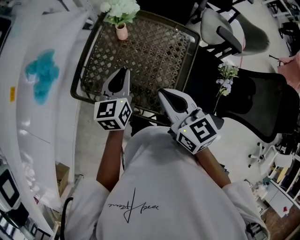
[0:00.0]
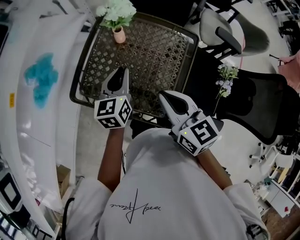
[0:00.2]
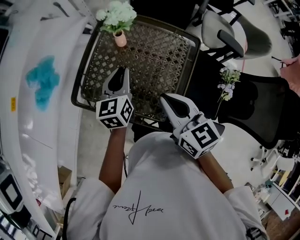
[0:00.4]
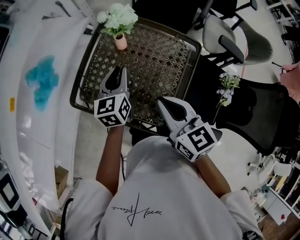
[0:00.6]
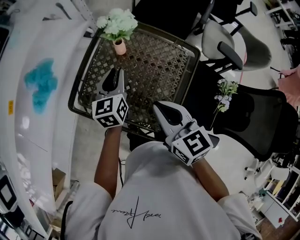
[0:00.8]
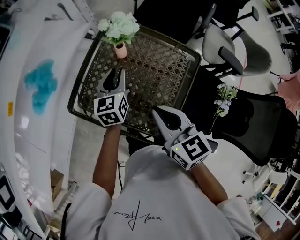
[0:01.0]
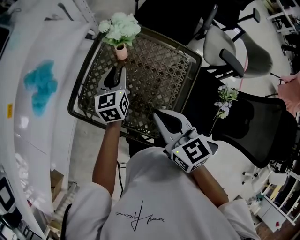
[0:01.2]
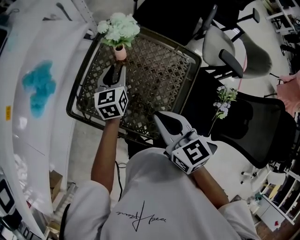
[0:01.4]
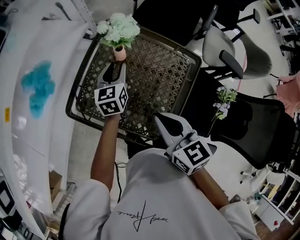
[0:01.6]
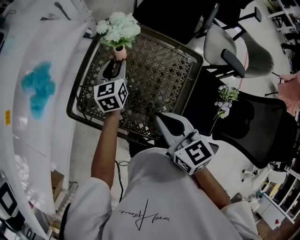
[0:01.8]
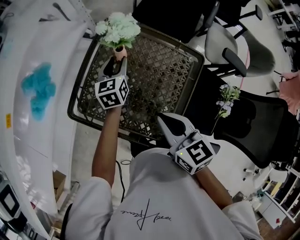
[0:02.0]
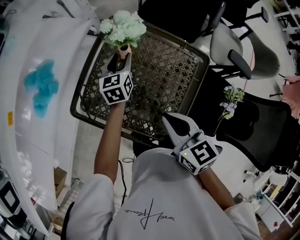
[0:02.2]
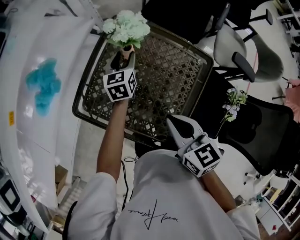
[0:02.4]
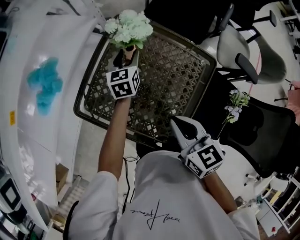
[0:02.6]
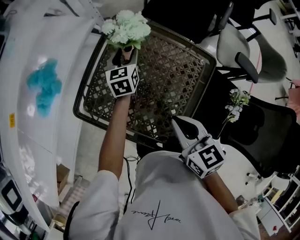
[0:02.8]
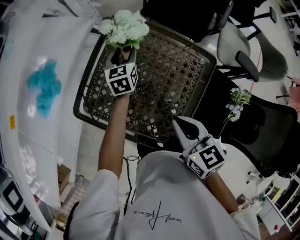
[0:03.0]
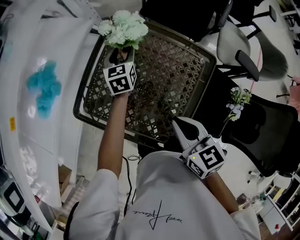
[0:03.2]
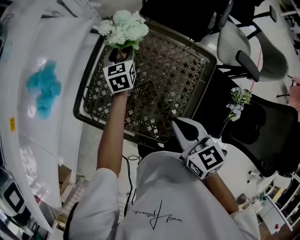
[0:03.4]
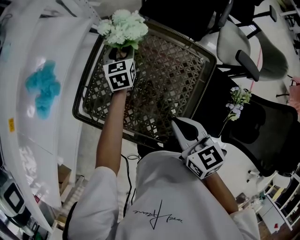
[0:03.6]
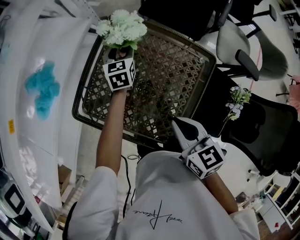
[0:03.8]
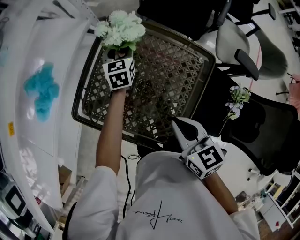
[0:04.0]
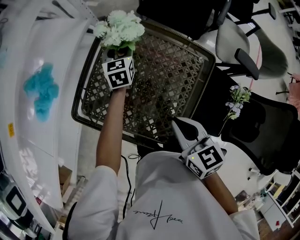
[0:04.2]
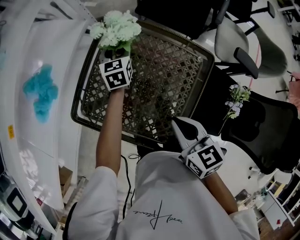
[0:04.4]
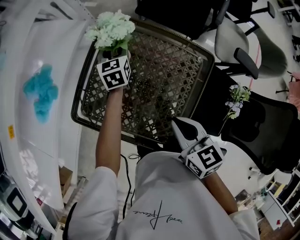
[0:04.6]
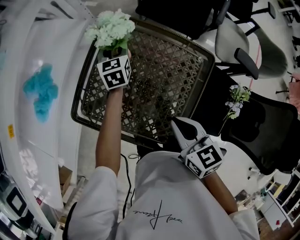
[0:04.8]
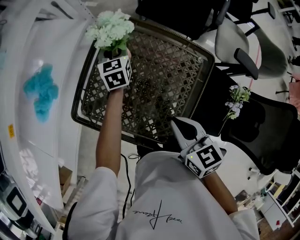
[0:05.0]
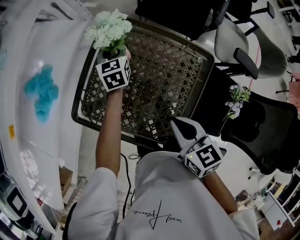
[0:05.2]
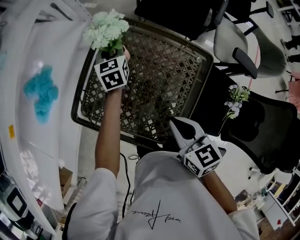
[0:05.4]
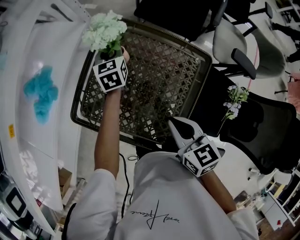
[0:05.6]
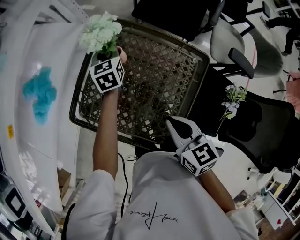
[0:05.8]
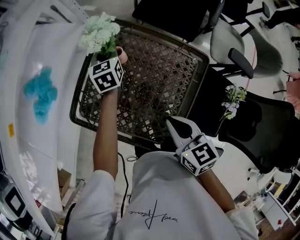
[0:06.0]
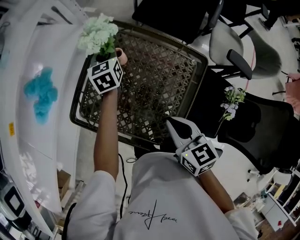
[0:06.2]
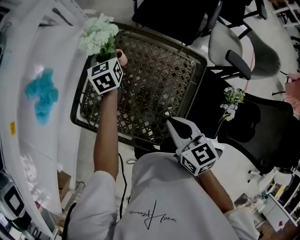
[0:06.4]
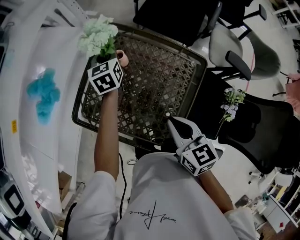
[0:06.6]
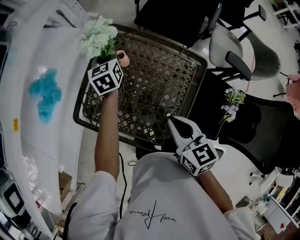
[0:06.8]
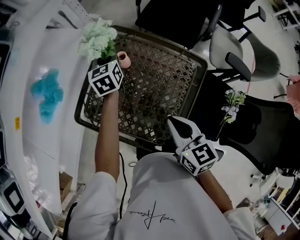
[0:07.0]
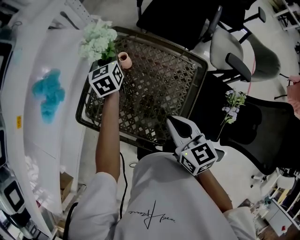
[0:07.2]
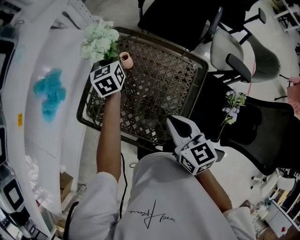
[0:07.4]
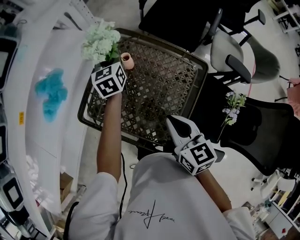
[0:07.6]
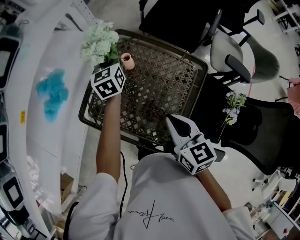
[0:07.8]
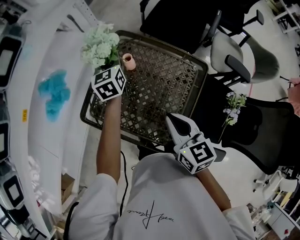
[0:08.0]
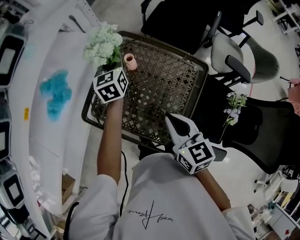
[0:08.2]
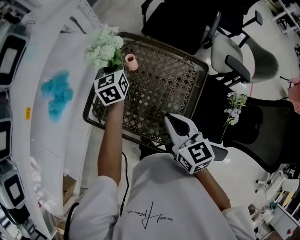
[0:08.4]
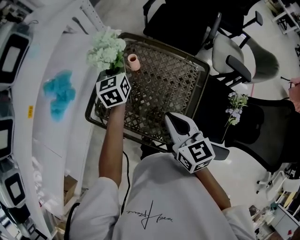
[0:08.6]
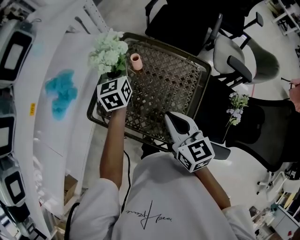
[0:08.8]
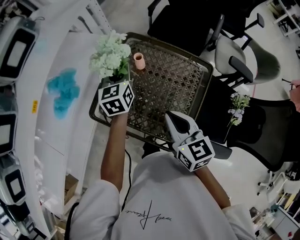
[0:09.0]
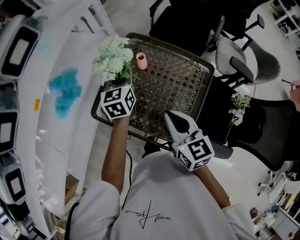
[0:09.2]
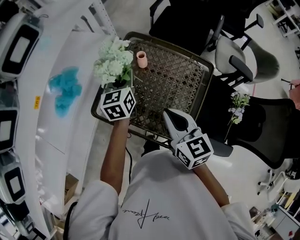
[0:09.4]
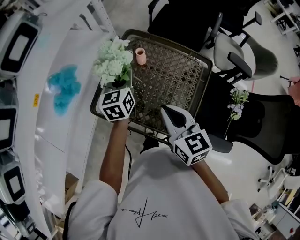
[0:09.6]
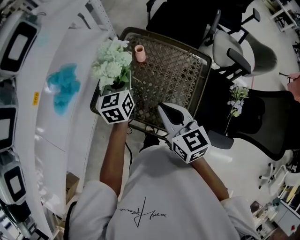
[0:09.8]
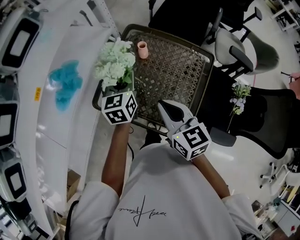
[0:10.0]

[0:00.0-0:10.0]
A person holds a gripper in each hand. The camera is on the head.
0:00.0 to 0:01.4: The right gripper ends up some 5 cm from where it was. Meanwhile the left gripper heads forward and downward, covering about 15 cm, and opens.
0:01.4 to 0:02.8: The left gripper is displaced forward by about 10 cm, while the right gripper moves about 5 cm.
0:02.8 to 0:04.2: The grippers move only a little.
0:04.2 to 0:05.8: The left gripper closes its fingers.
0:05.8 to 0:07.2: The left gripper heads upward, covering approximately 5 cm.
0:07.2 to 0:08.6: The left gripper shifts roughly 10 cm backward and upward; the right gripper ends up approximately 5 cm from where it was.
0:08.6 to 0:10.0: The right gripper heads to the left, covering approximately 10 cm. Meanwhile the left gripper shifts some 10 cm backward.

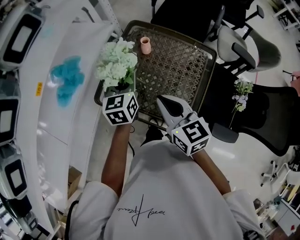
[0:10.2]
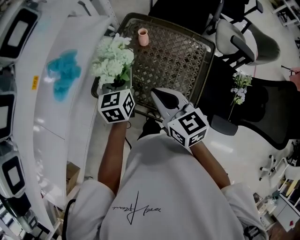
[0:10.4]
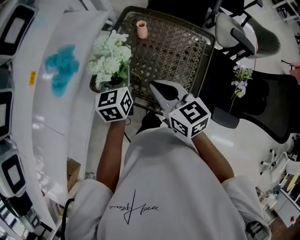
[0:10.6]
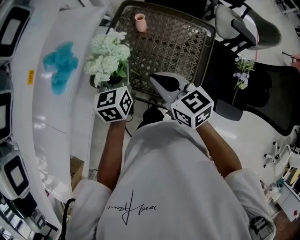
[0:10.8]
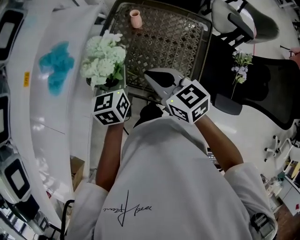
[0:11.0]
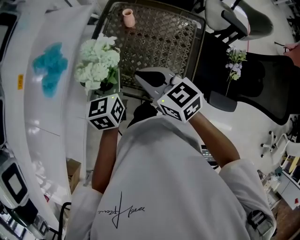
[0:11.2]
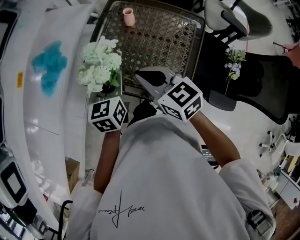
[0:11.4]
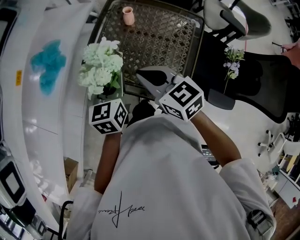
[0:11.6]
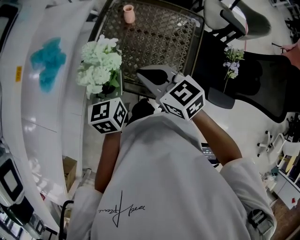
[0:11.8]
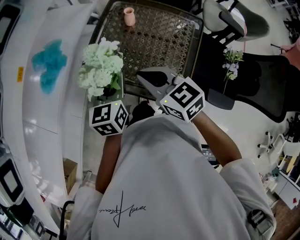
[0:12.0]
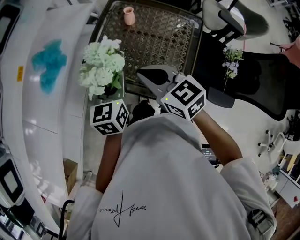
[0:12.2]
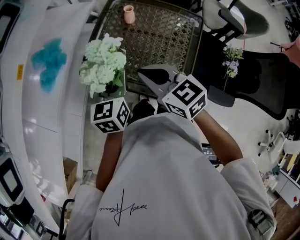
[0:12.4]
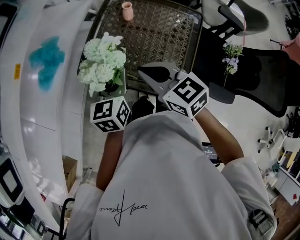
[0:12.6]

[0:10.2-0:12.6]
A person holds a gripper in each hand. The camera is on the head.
0:10.2 to 0:11.4: The right gripper shifts by about 5 cm. Meanwhile the left gripper travels backward by about 10 cm.
0:11.4 to 0:12.6: The grippers make only small movements.

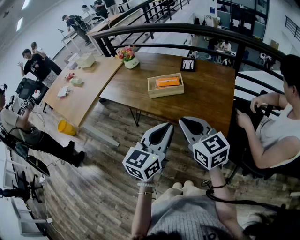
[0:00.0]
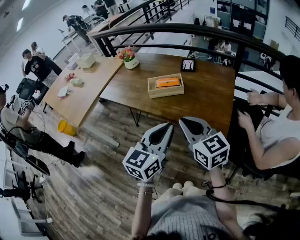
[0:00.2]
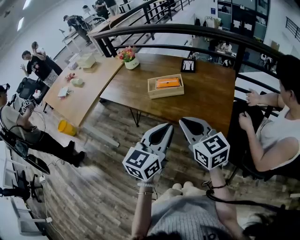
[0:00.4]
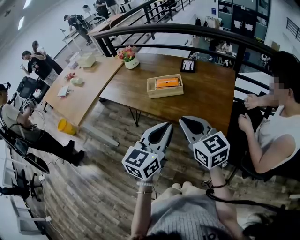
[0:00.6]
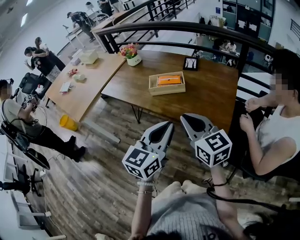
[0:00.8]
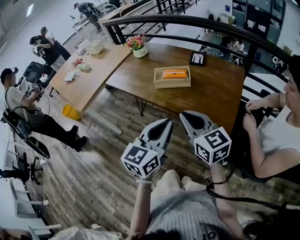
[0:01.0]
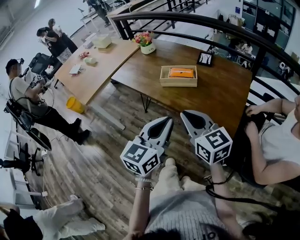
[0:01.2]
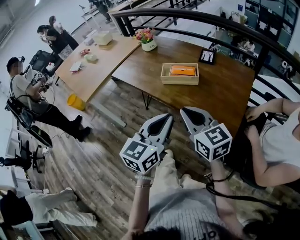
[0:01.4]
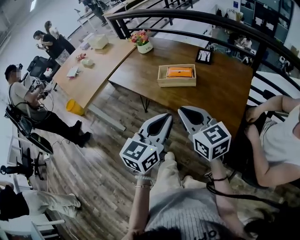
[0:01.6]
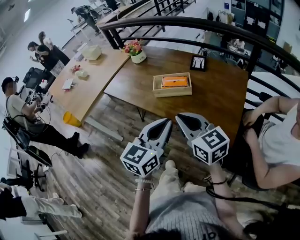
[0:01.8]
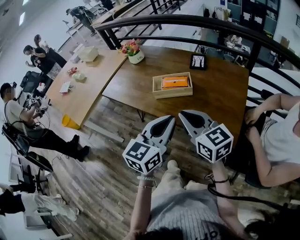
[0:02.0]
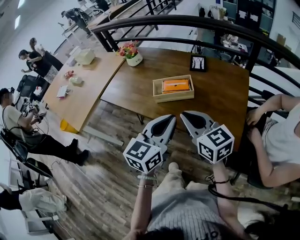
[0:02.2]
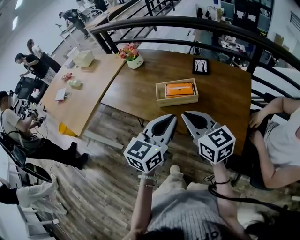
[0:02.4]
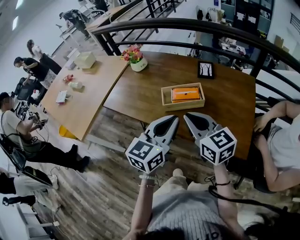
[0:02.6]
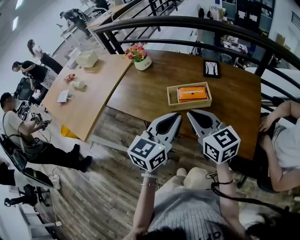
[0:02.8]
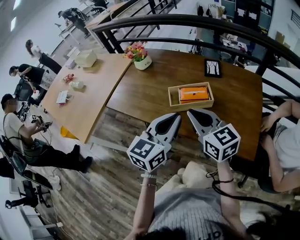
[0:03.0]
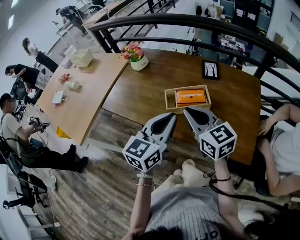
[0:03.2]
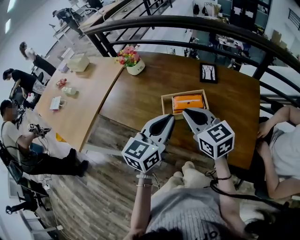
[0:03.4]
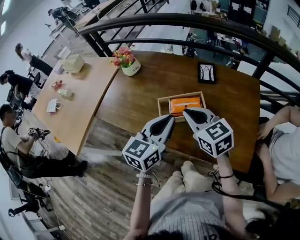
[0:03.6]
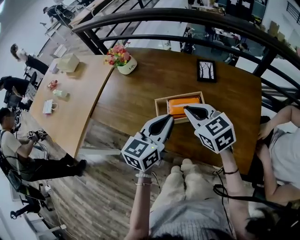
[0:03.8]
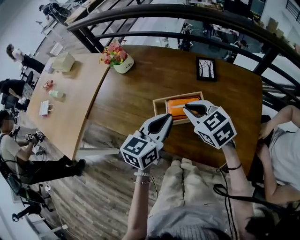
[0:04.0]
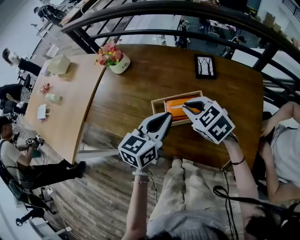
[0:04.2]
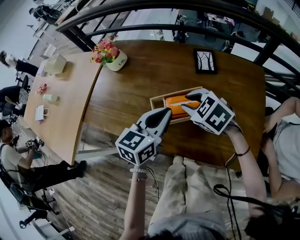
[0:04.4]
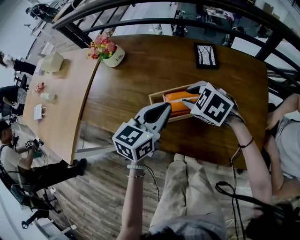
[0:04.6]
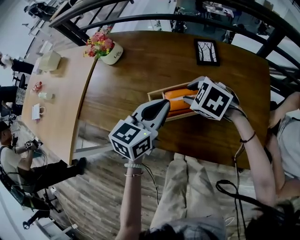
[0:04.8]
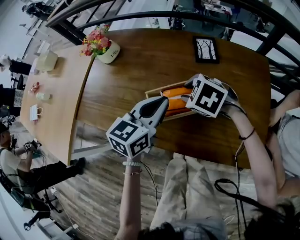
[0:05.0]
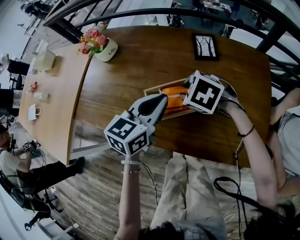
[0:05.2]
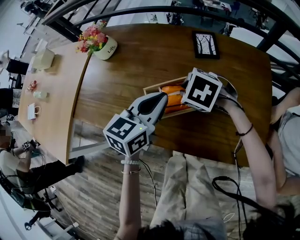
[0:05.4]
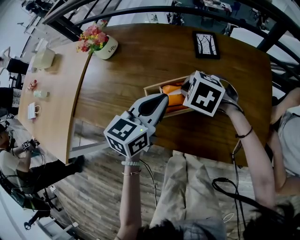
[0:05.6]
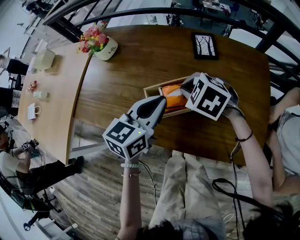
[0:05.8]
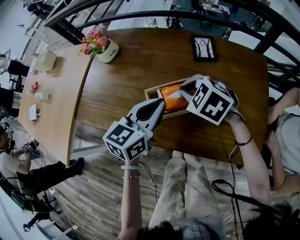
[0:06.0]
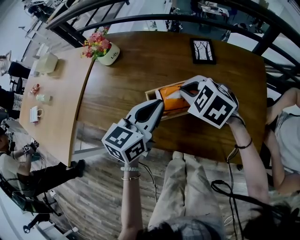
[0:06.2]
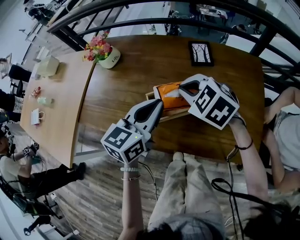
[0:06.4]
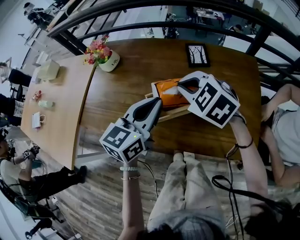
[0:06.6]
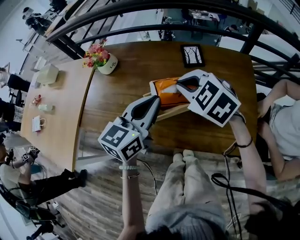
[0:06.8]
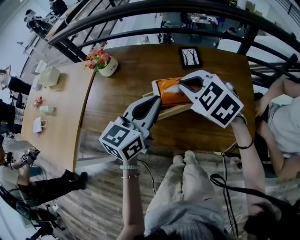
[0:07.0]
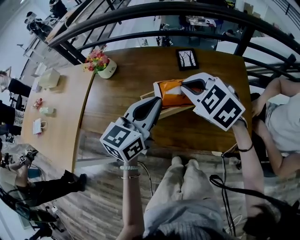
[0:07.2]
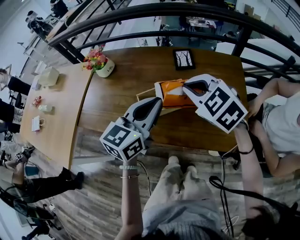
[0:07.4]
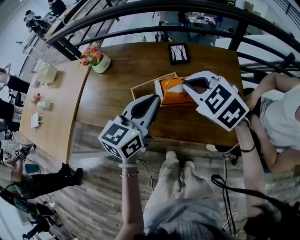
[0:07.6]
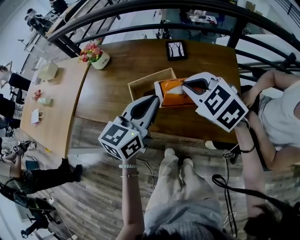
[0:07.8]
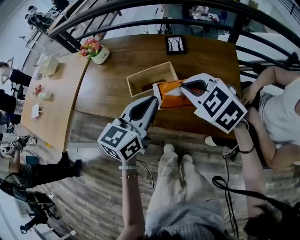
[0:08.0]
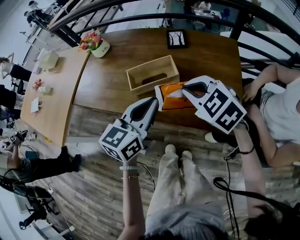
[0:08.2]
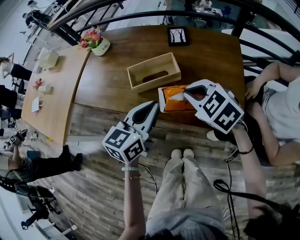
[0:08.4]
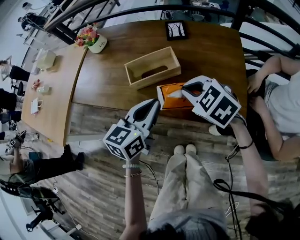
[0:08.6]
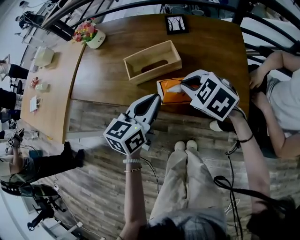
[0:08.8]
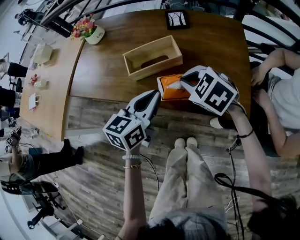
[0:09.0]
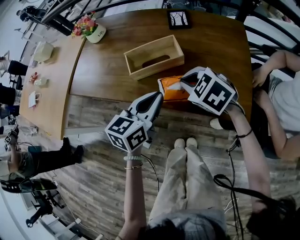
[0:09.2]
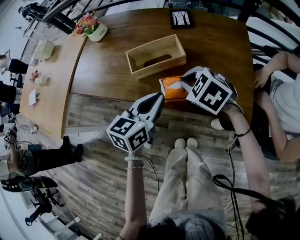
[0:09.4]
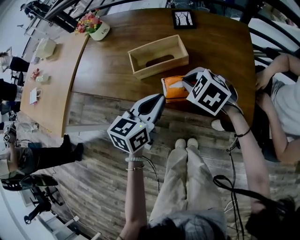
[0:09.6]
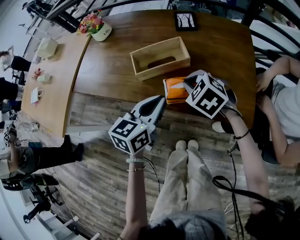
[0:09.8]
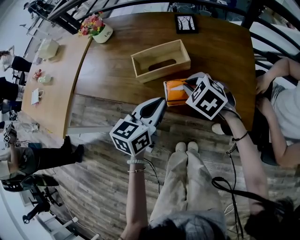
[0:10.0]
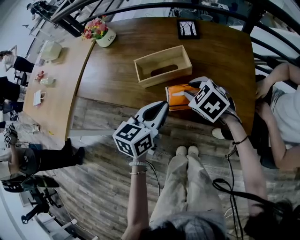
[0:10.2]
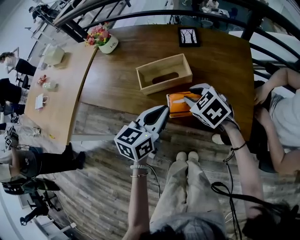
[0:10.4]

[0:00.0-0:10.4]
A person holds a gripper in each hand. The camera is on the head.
0:00.0 to 0:01.4: The grippers move only a little.
0:01.4 to 0:03.0: The grippers both shift forward by approximately 15 cm.
0:03.0 to 0:04.4: Both grippers travel together forward and downward, about 15 cm. The right gripper angles its fingers downward, by about 40 degrees, and opens up.
0:04.4 to 0:06.0: The right gripper closes.
0:06.0 to 0:07.4: The left gripper goes some 10 cm upward; the right gripper is displaced upward, to the right and backward by some 15 cm.
0:07.4 to 0:09.0: Both grippers move downward and backward, roughly 15 cm.
0:09.0 to 0:10.4: The right gripper opens its fingers.

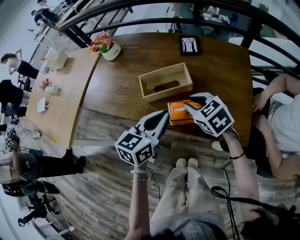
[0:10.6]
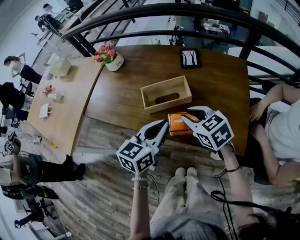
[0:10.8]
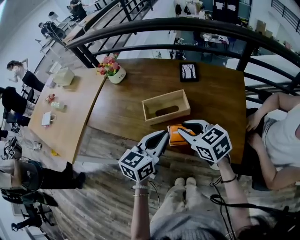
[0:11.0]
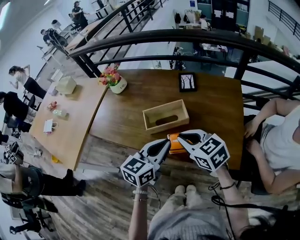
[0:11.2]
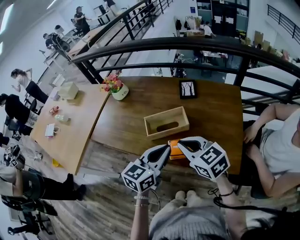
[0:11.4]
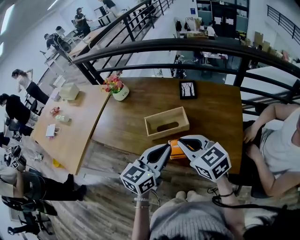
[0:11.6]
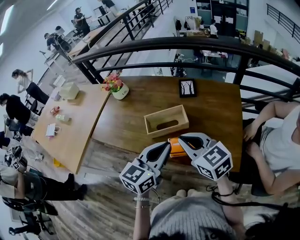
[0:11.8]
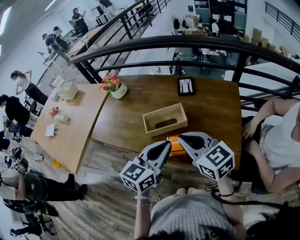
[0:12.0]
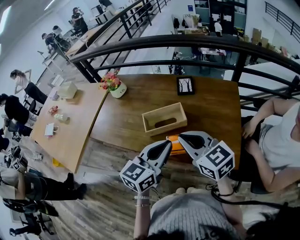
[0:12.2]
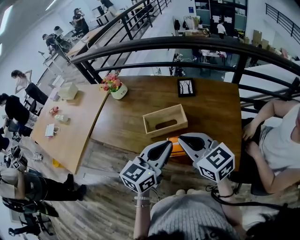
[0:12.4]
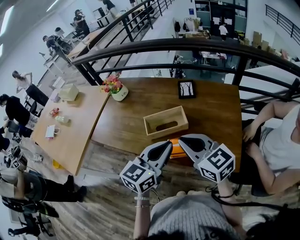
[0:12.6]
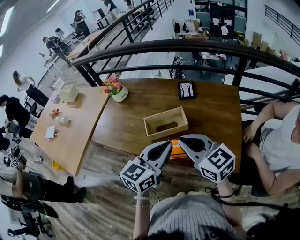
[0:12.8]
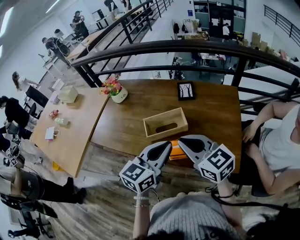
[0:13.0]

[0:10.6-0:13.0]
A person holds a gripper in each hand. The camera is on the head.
0:10.6 to 0:11.8: The left gripper shifts roughly 10 cm upward. Meanwhile the right gripper heads upward, covering about 15 cm, rotates about 20 degrees, and closes its fingers.
0:11.8 to 0:13.0: The grippers stay close to where they were, moving slightly.
